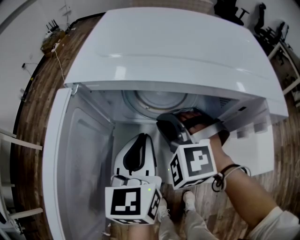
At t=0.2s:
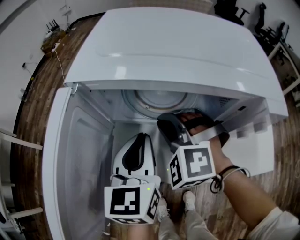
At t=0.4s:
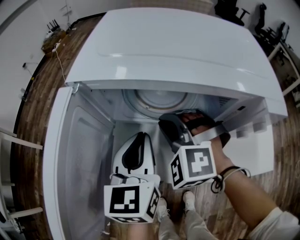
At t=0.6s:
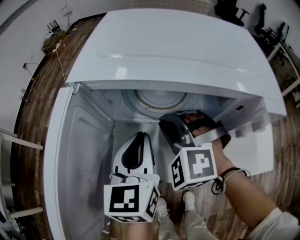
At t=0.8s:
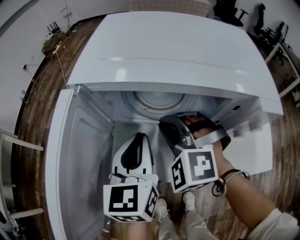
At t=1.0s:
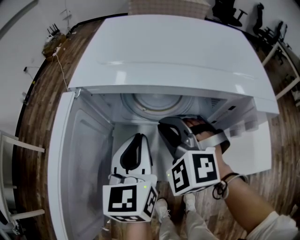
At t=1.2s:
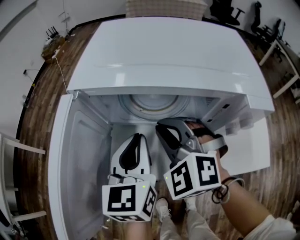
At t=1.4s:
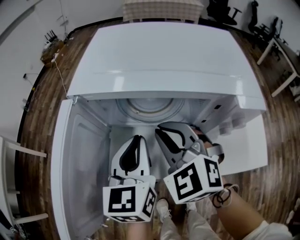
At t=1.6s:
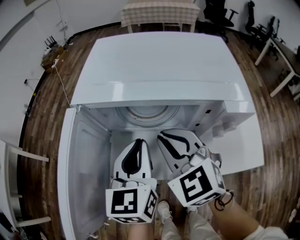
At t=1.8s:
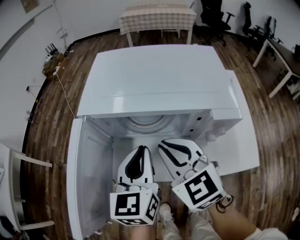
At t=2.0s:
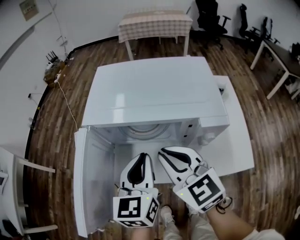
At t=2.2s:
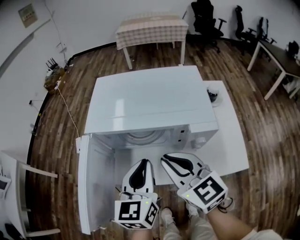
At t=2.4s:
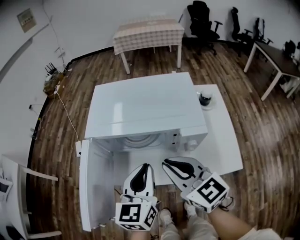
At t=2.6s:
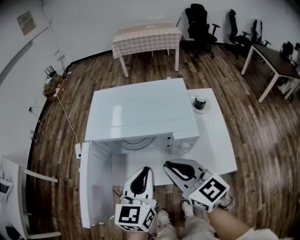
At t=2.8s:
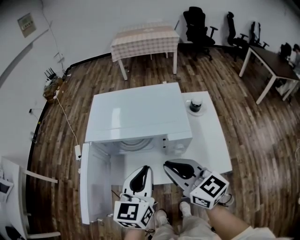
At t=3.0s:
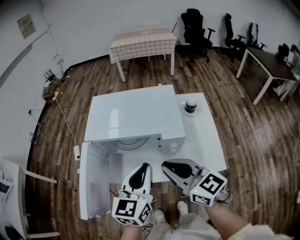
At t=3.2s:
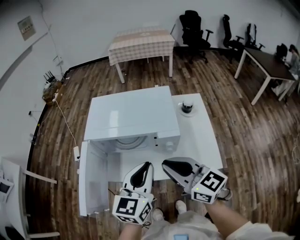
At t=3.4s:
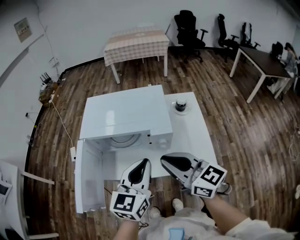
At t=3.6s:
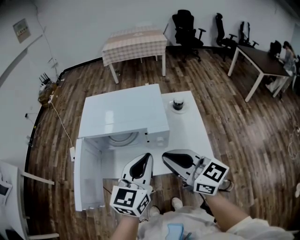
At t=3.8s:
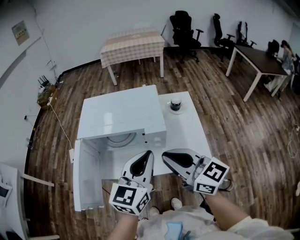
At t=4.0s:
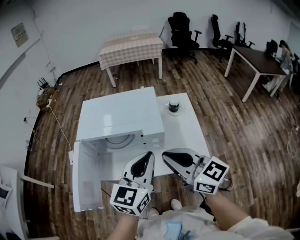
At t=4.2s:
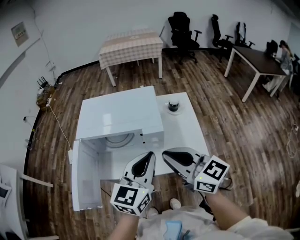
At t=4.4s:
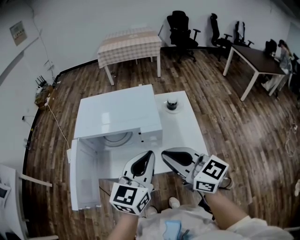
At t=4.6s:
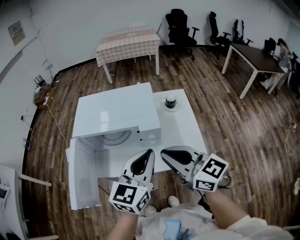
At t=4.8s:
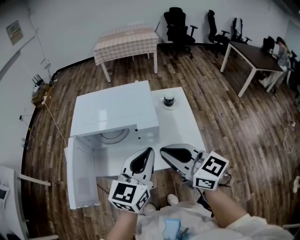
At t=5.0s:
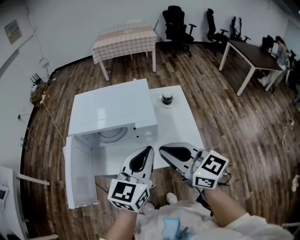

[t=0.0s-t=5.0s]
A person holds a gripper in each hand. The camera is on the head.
t=0.0s to t=1.6s: The right gripper shifts roughly 10 cm upward and backward, and twists roughly 40 degrees clockwise, seen from behind; the left gripper is displaced upward by about 5 cm.
t=1.6s to t=3.4s: The right gripper heads upward, backward and to the right, covering about 25 cm, and changes its angle by some 40 degrees. The left gripper heads upward, to the right and backward, covering approximately 25 cm, and changes its angle by approximately 20 degrees.
t=3.4s to t=5.0s: The left gripper goes approximately 5 cm to the right. Meanwhile the right gripper ends up some 5 cm from where it was.

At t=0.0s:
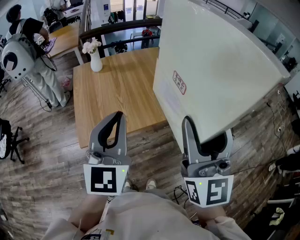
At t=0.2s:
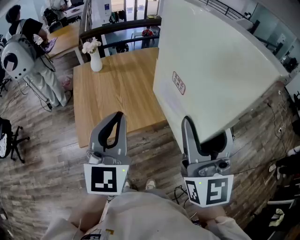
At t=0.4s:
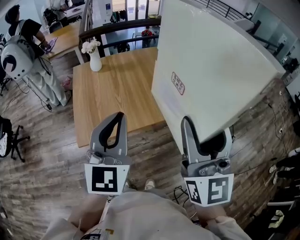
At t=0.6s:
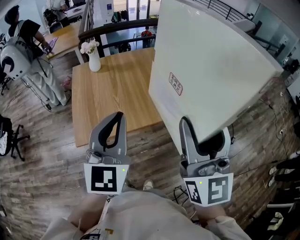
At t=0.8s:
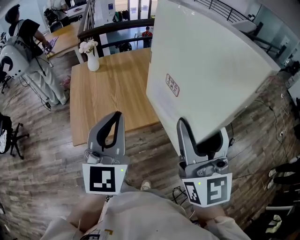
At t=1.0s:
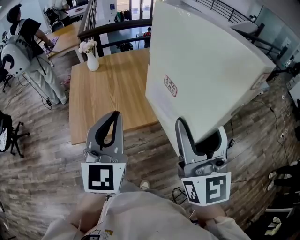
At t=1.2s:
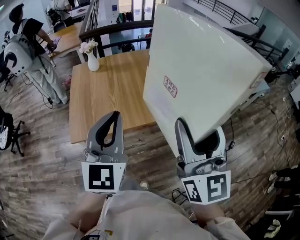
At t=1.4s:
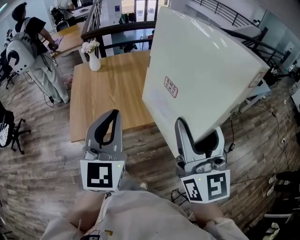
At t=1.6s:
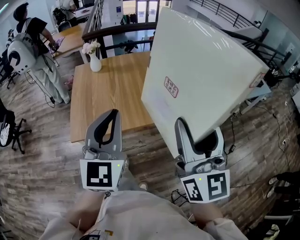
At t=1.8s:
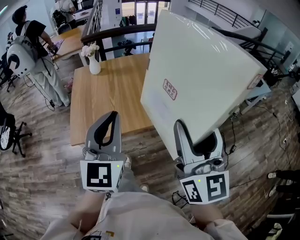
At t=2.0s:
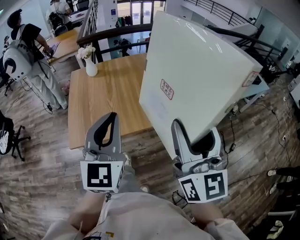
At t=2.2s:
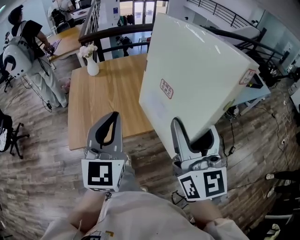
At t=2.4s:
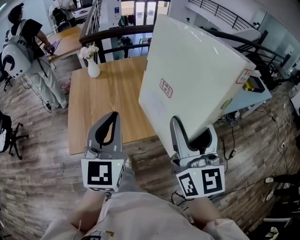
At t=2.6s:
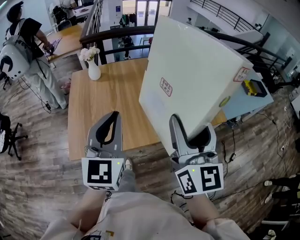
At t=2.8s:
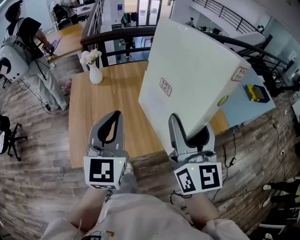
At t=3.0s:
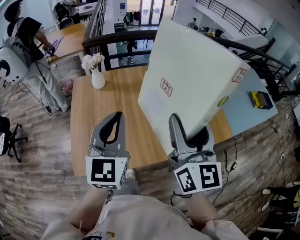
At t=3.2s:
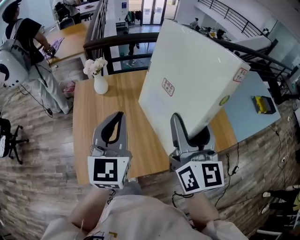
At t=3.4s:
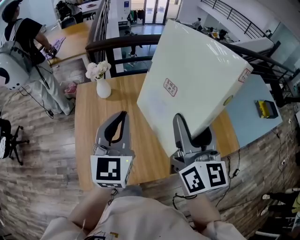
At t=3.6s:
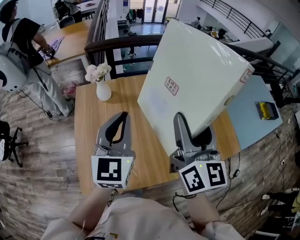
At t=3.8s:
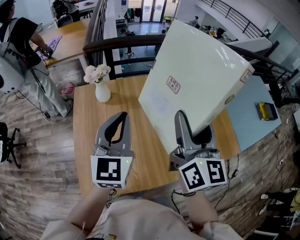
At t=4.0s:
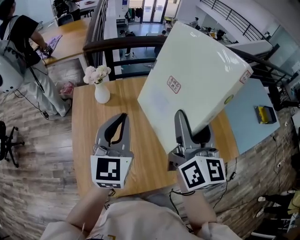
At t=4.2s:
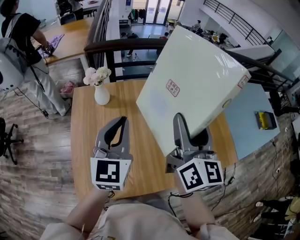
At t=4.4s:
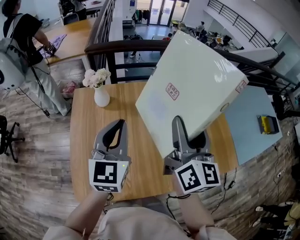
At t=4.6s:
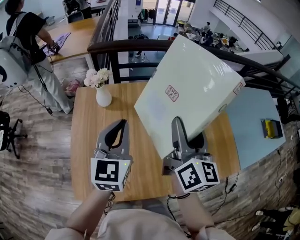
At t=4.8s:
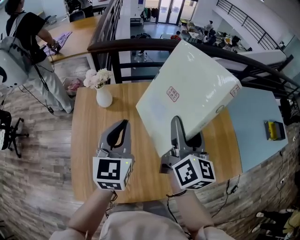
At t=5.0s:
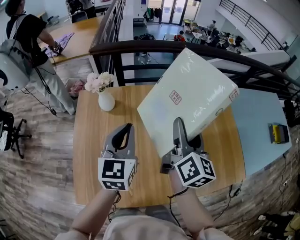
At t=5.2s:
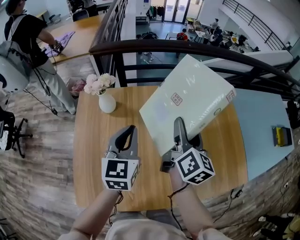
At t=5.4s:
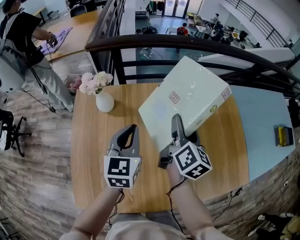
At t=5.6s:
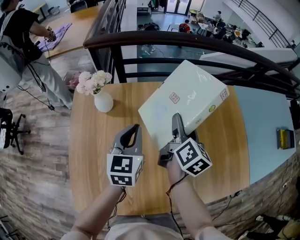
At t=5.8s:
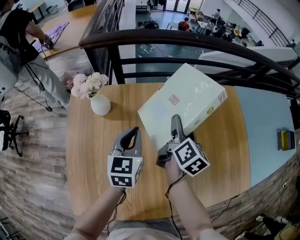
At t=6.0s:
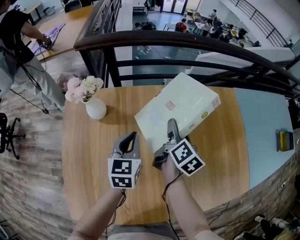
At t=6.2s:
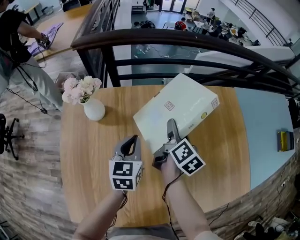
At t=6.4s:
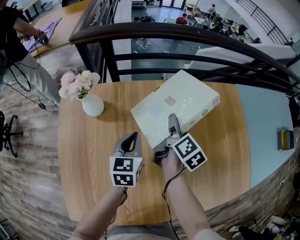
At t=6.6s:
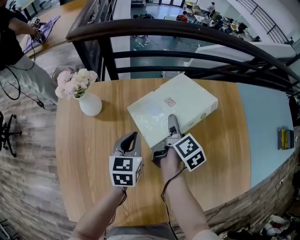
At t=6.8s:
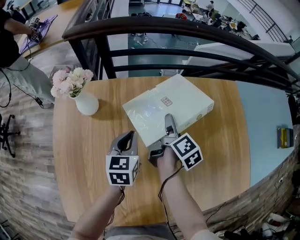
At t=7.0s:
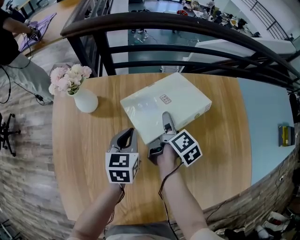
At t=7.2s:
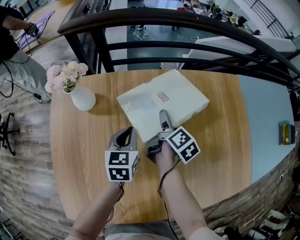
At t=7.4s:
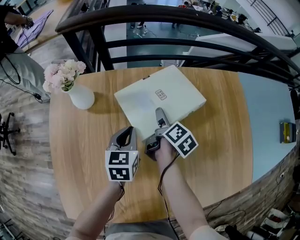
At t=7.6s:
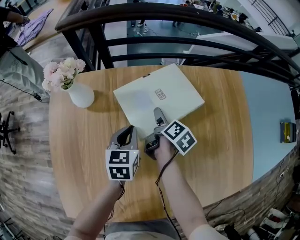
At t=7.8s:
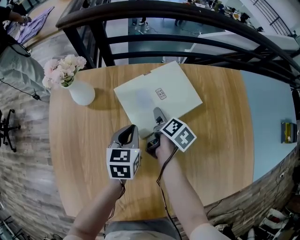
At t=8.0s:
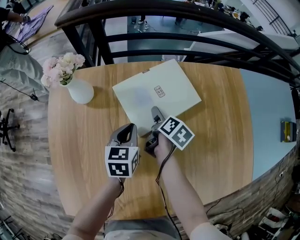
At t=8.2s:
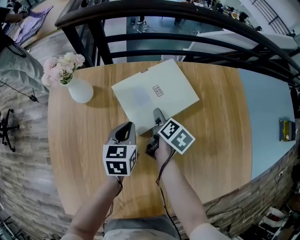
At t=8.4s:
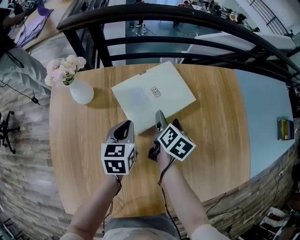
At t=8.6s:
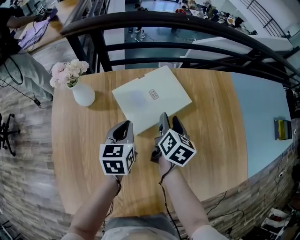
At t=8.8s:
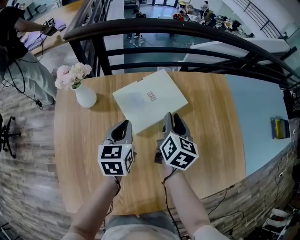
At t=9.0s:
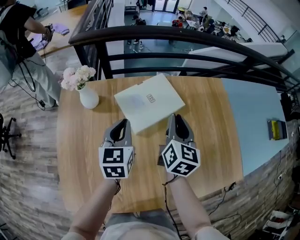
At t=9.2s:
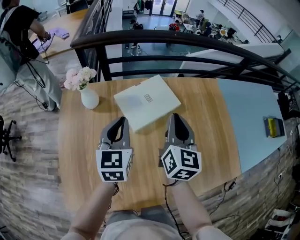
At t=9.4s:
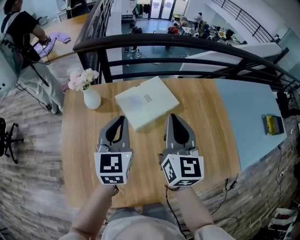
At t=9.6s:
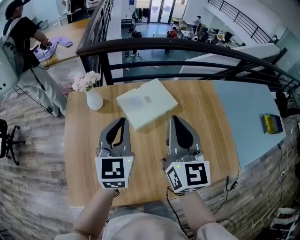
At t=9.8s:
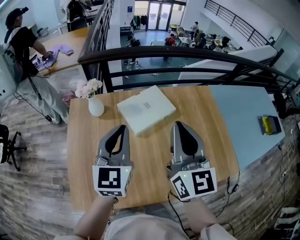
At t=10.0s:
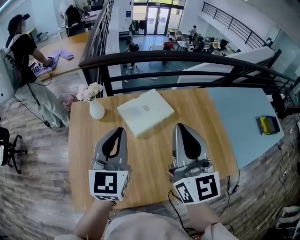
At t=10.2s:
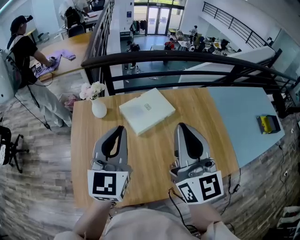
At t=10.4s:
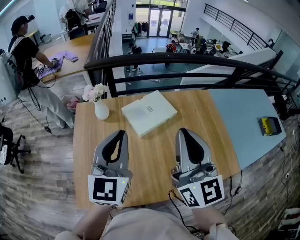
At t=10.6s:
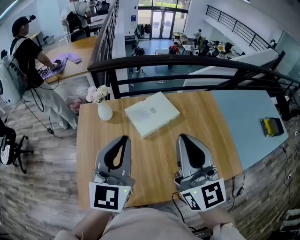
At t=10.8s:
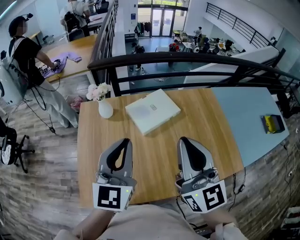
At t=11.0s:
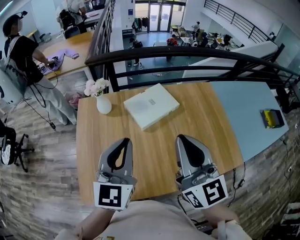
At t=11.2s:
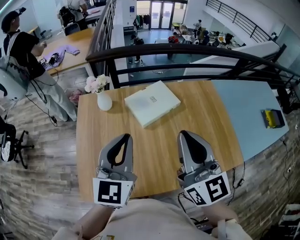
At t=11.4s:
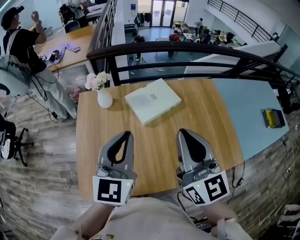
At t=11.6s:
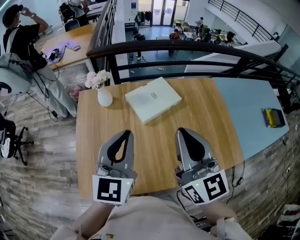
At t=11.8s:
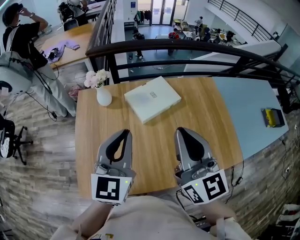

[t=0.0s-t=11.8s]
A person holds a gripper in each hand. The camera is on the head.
t=0.0s to t=1.4s: Both grippers travel together to the right, some 10 cm.
t=1.4s to t=3.0s: Both grippers move forward, some 30 cm.
t=3.0s to t=4.4s: The grippers both shift forward by some 20 cm.
t=4.4s to t=6.0s: The two grippers go roughly 35 cm downward and forward. The right gripper rotates some 40 degrees, while the left gripper rotates roughly 20 degrees.
t=6.0s to t=7.4s: The grippers both shift downward by approximately 10 cm.
t=7.4s to t=8.8s: The right gripper is displaced upward by roughly 15 cm, rotates roughly 40 degrees, and closes its fingers. Meanwhile the left gripper goes some 10 cm upward.
t=8.8s to t=10.4s: Both grippers travel together upward and backward, some 40 cm. The right gripper tilts its fingers approximately 40 degrees upward; the left gripper rotates approximately 30 degrees.
t=10.4s to t=11.8s: There are only small adjustments of the grippers.

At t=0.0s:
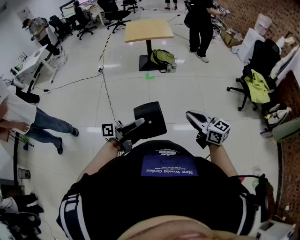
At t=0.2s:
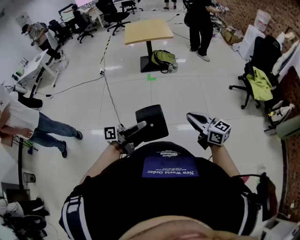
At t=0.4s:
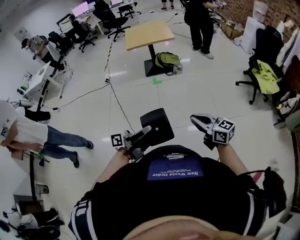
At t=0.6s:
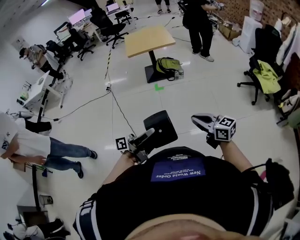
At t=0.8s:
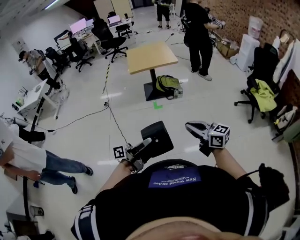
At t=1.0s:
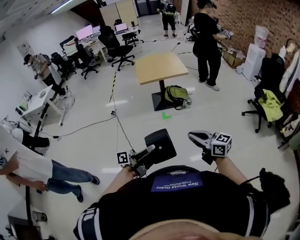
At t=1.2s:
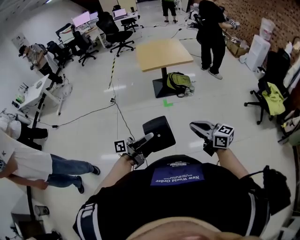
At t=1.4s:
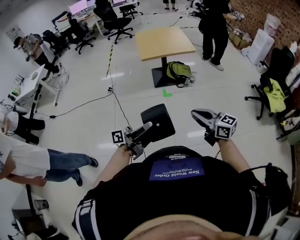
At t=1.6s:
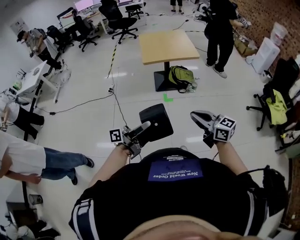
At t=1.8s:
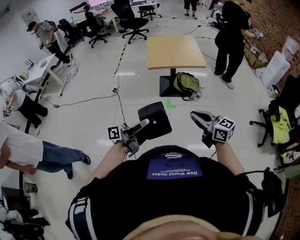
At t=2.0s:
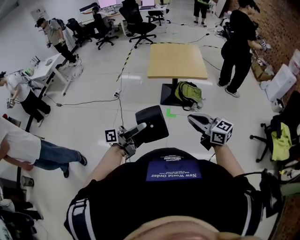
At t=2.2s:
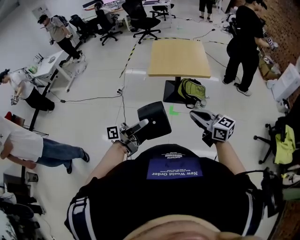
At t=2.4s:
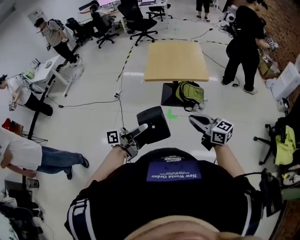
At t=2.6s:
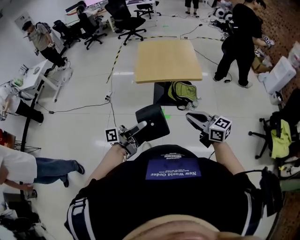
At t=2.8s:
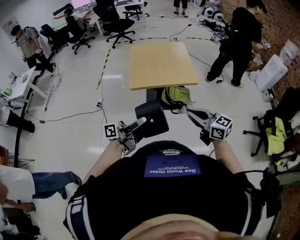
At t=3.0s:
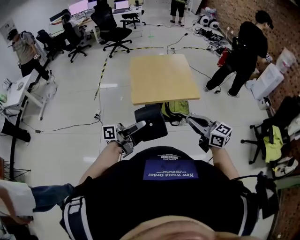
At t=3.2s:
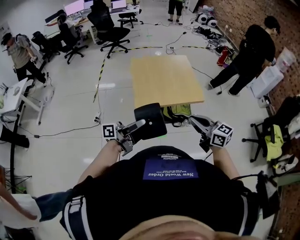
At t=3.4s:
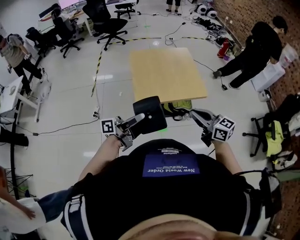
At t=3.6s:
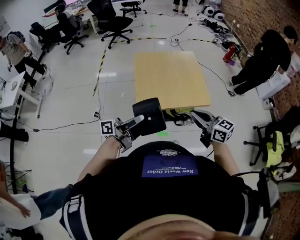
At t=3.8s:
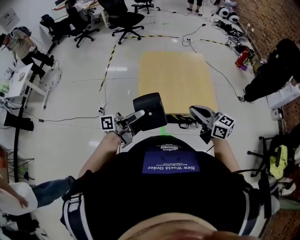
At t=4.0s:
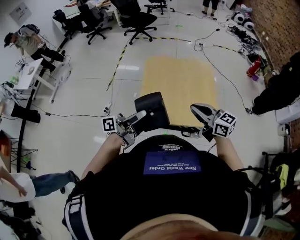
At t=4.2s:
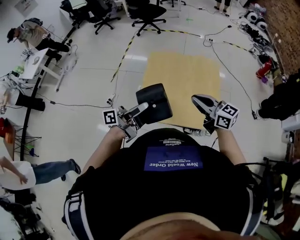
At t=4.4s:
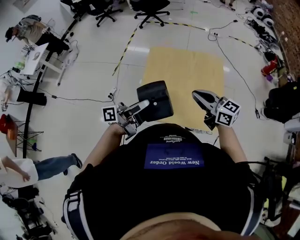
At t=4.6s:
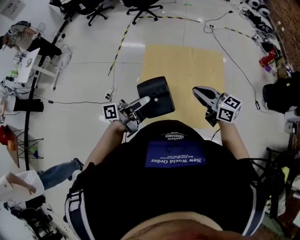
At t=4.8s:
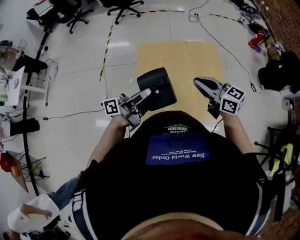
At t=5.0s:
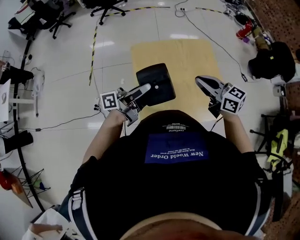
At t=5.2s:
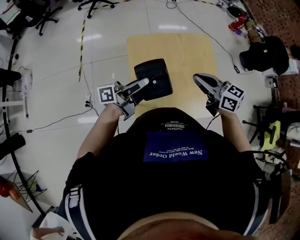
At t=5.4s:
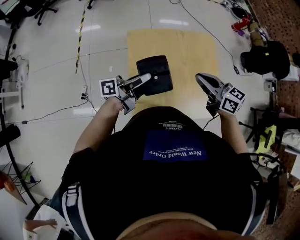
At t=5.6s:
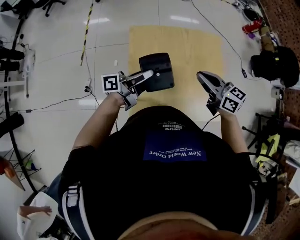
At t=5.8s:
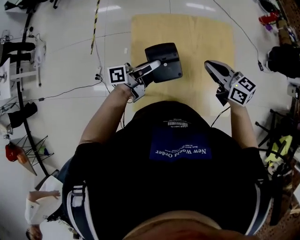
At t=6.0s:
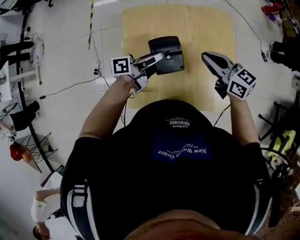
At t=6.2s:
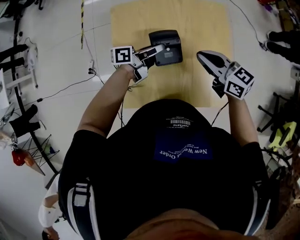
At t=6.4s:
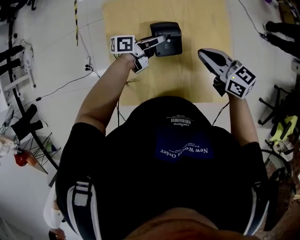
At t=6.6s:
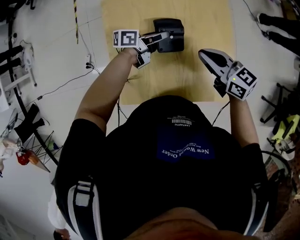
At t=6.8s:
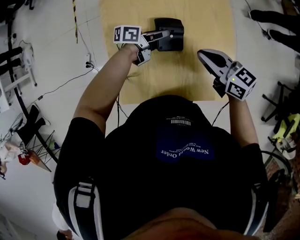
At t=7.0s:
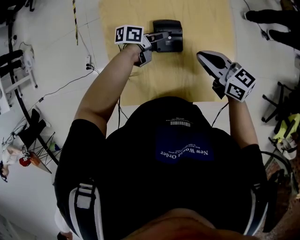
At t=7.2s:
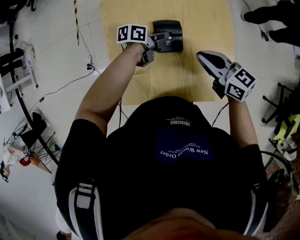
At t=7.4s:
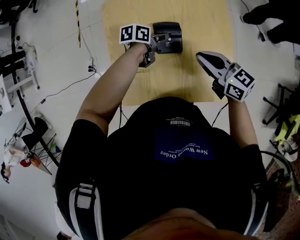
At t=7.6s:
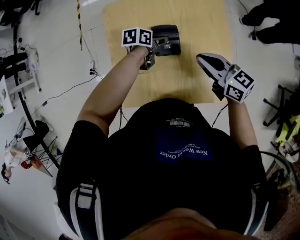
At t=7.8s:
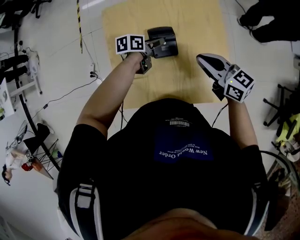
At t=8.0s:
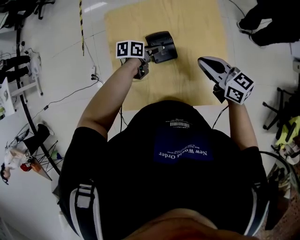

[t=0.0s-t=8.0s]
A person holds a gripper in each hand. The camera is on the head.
t=0.0s to t=1.6s: The pair of grippers is taken forward and to the left, approximately 40 cm.
t=1.6s to t=3.2s: Both grippers are carried forward, approximately 50 cm.
t=3.2s to t=4.8s: Both grippers are carried forward, approximately 40 cm.
t=4.8s to t=6.4s: The right gripper moves downward, to the right and forward, roughly 20 cm. Meanwhile the left gripper shifts some 35 cm downward, forward and to the right, and turns by roughly 30 degrees.
t=6.4s to t=8.0s: The left gripper heads downward, covering roughly 5 cm, tips its fingers downward by about 30 degrees, and opens.
